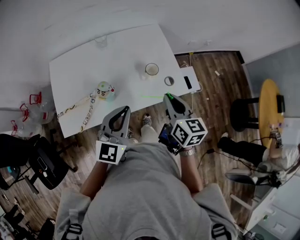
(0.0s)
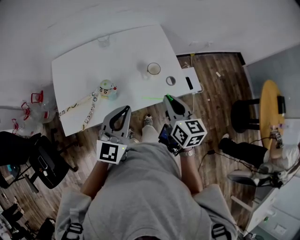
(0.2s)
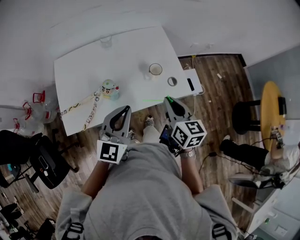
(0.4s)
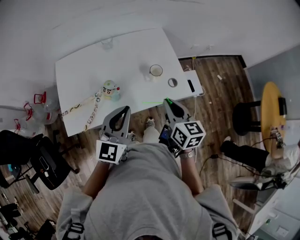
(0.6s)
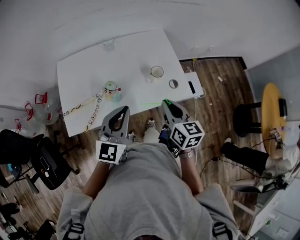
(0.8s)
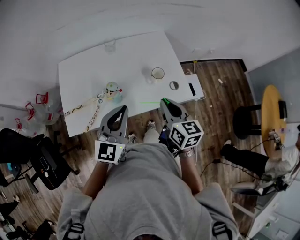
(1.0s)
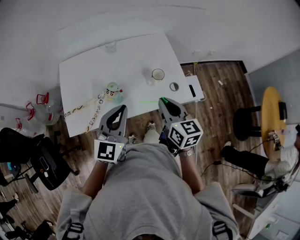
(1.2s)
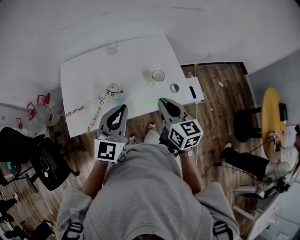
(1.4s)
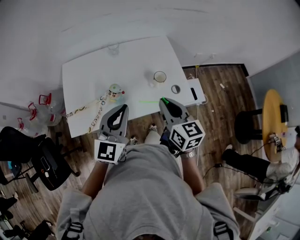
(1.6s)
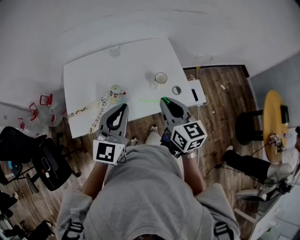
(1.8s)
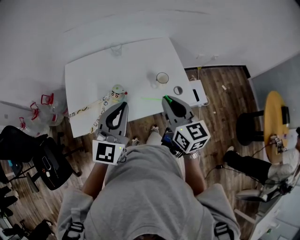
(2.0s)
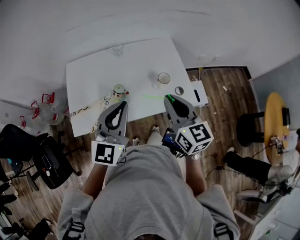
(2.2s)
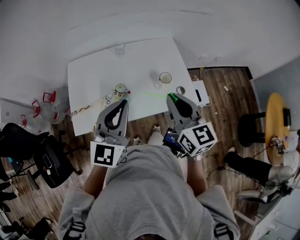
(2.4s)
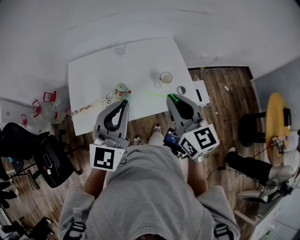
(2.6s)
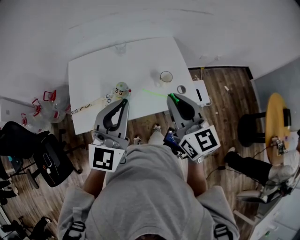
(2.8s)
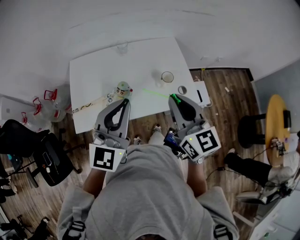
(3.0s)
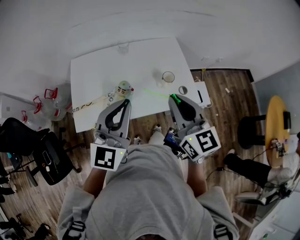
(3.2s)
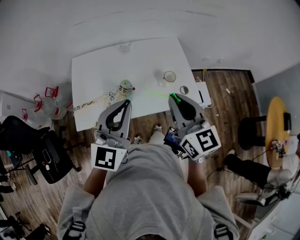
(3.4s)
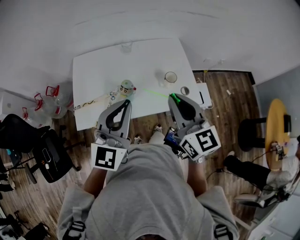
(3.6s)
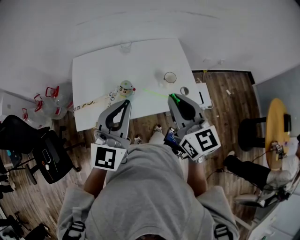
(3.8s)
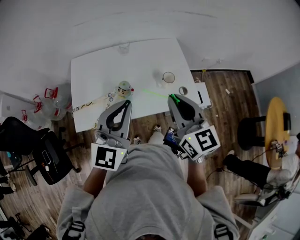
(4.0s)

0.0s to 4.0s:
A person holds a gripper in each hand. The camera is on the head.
0.0s to 1.4s: The right gripper is displaced to the left by about 5 cm.
1.4s to 2.6s: Both grippers move upward, approximately 10 cm.
2.6s to 4.0s: The grippers stay close to where they were, moving slightly.

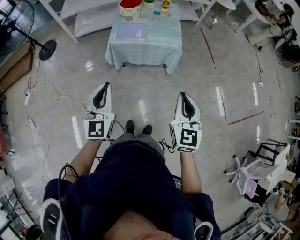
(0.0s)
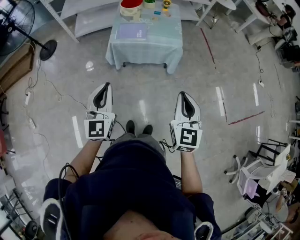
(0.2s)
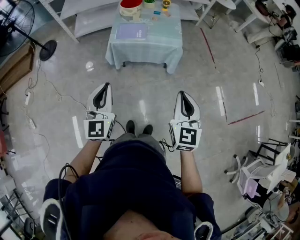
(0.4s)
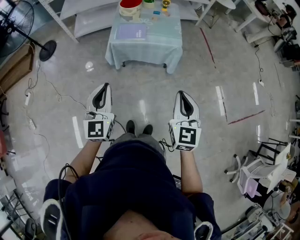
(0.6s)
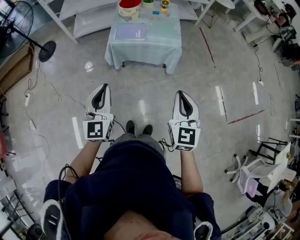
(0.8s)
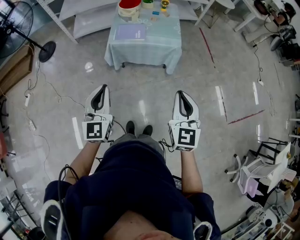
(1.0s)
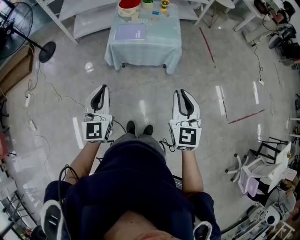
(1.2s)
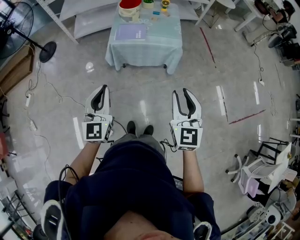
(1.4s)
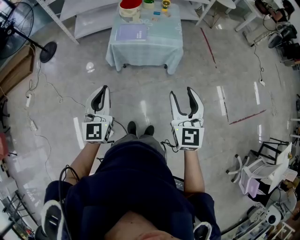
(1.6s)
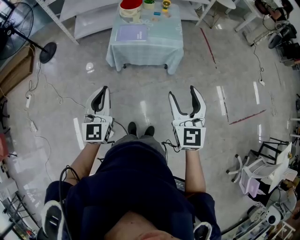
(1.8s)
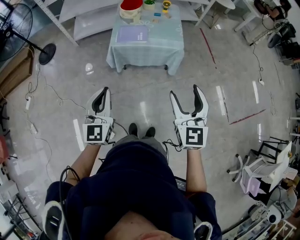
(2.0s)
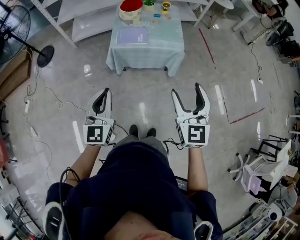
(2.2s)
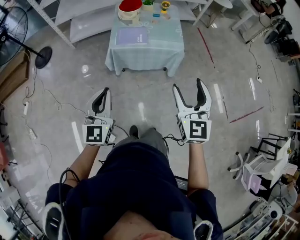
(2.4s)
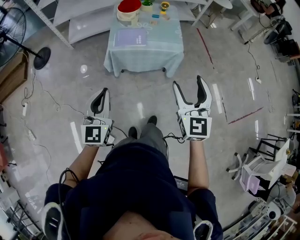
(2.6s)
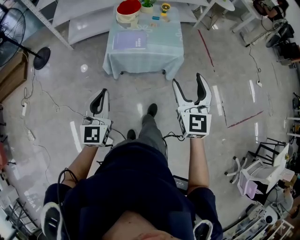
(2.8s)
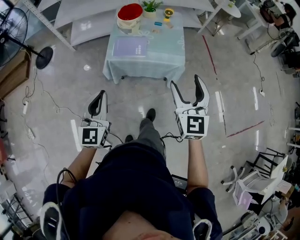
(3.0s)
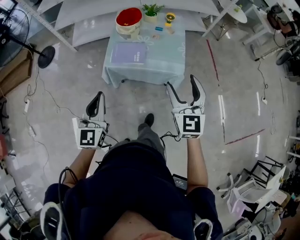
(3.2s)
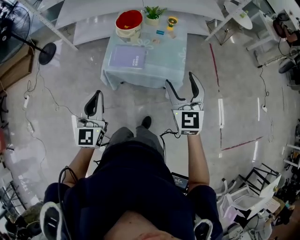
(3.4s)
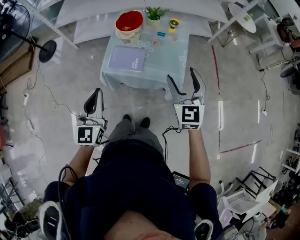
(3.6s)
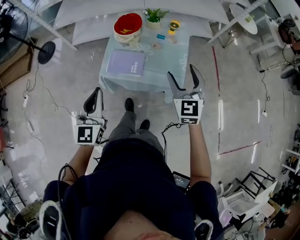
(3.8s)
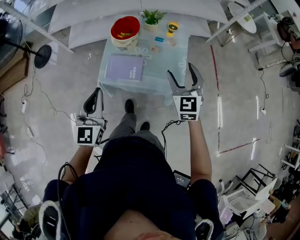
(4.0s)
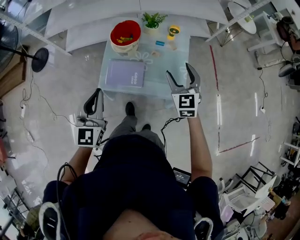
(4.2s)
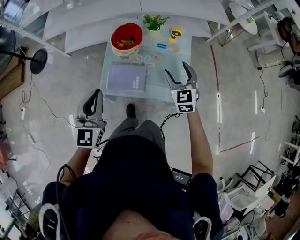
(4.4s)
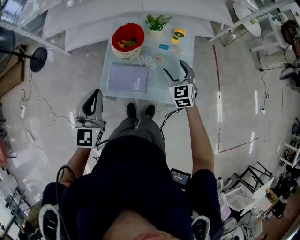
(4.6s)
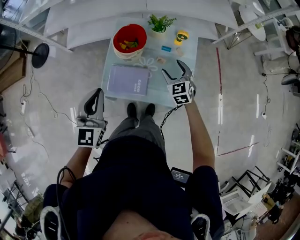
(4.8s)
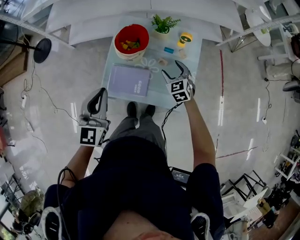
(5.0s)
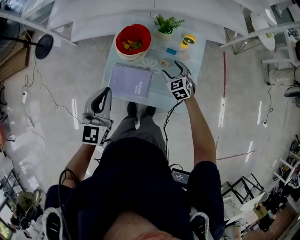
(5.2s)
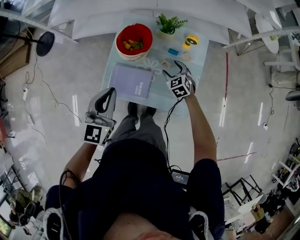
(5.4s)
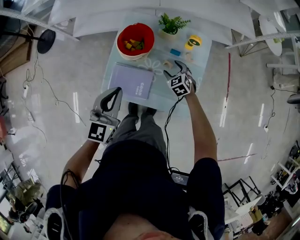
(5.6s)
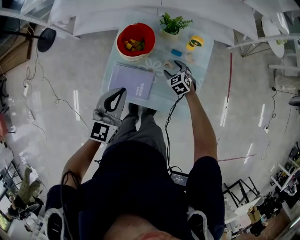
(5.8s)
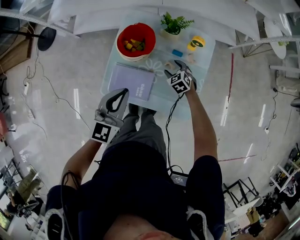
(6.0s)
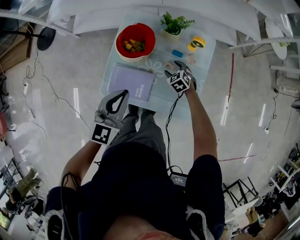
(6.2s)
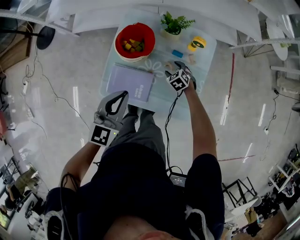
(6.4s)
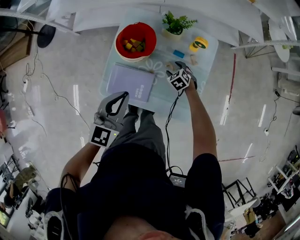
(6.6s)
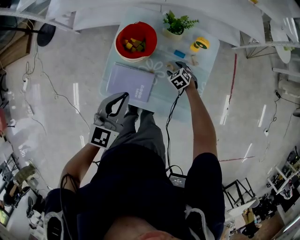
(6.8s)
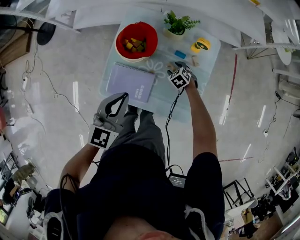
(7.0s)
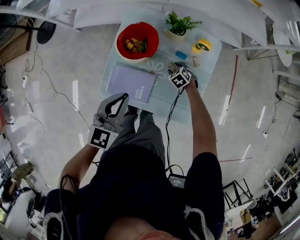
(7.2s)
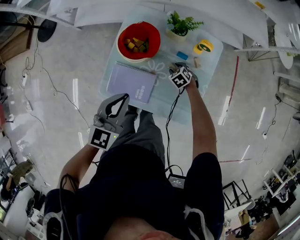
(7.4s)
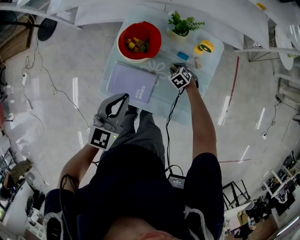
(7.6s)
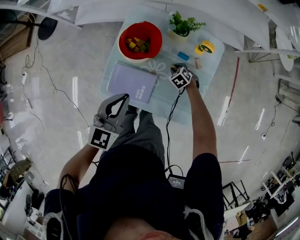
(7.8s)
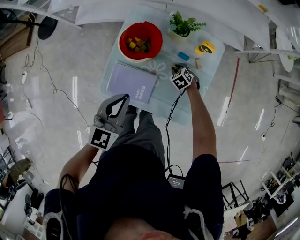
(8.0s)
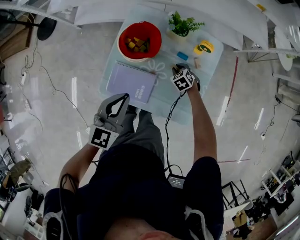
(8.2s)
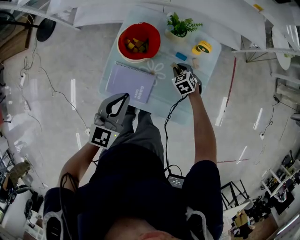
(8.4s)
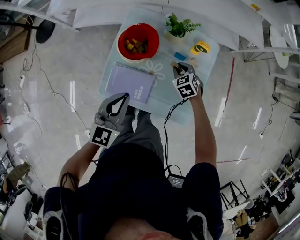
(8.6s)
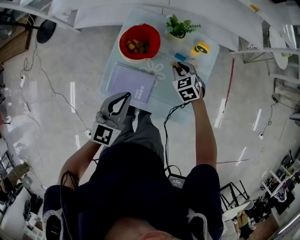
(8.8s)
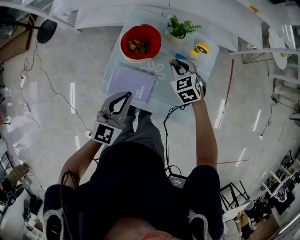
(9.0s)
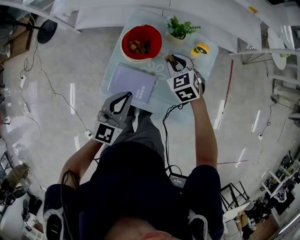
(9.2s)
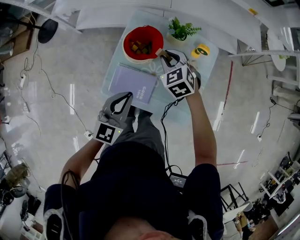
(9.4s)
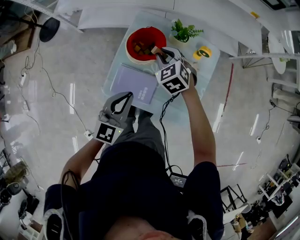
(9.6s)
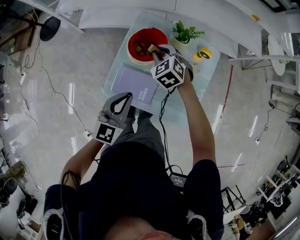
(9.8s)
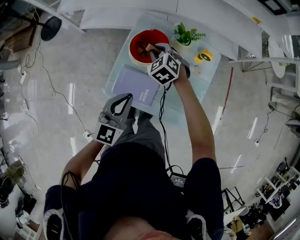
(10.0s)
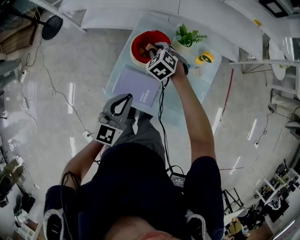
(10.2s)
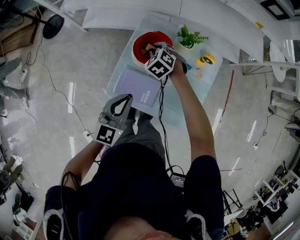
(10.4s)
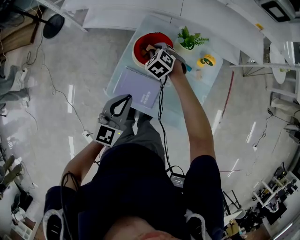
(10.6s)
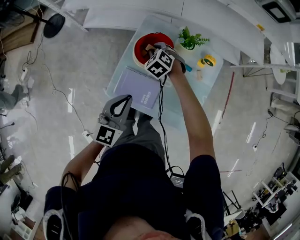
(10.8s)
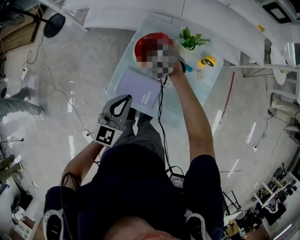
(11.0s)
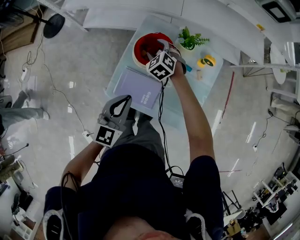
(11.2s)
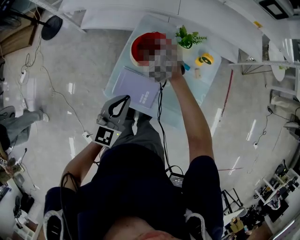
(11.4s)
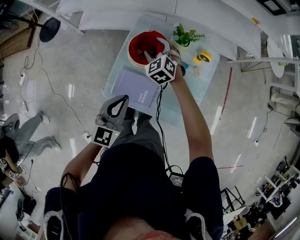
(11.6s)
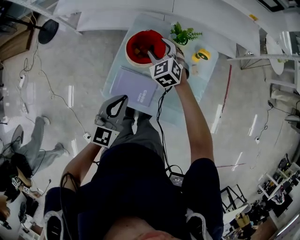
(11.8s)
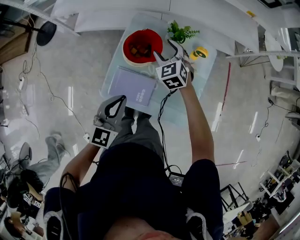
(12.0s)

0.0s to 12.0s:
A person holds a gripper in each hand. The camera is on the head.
0.0s to 1.6s: The right gripper opens up.
1.6s to 3.0s: The grippers both shift forward by approximately 20 cm.
3.0s to 4.4s: Both grippers move forward, roughly 40 cm. The right gripper swivels some 20 degrees.
4.4s to 6.0s: The left gripper is displaced forward, to the right and downward by roughly 15 cm. Meanwhile the right gripper heads downward and forward, covering roughly 30 cm, and tips its fingers downward by approximately 30 degrees.
6.0s to 7.6s: The right gripper heads downward, covering some 10 cm, and closes.
7.6s to 9.0s: The right gripper is displaced upward by approximately 25 cm, and swivels approximately 20 degrees.
9.0s to 10.4s: The right gripper travels to the left and forward by roughly 15 cm.
10.4s to 12.0s: The right gripper shifts some 10 cm to the right and upward, rotates about 20 degrees, and opens.

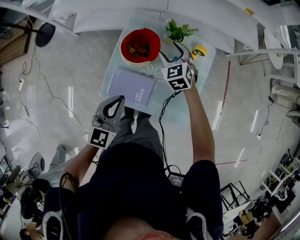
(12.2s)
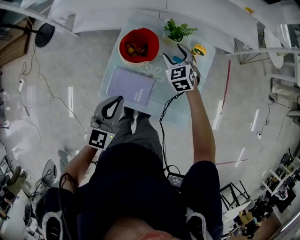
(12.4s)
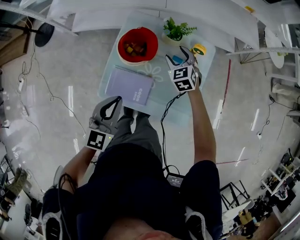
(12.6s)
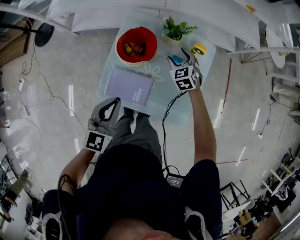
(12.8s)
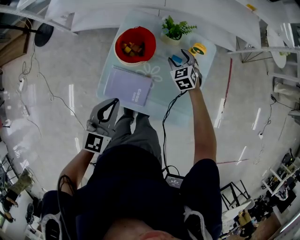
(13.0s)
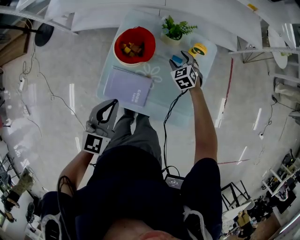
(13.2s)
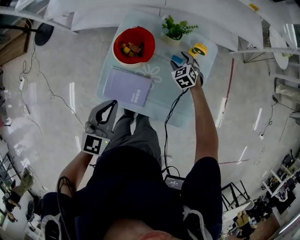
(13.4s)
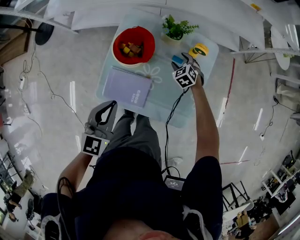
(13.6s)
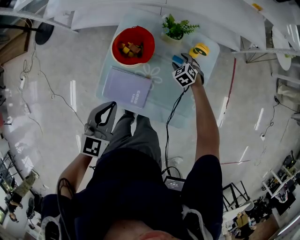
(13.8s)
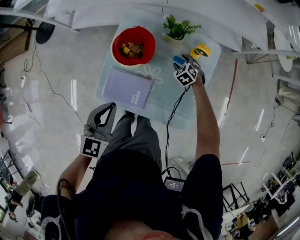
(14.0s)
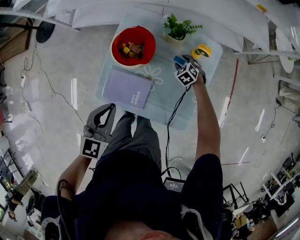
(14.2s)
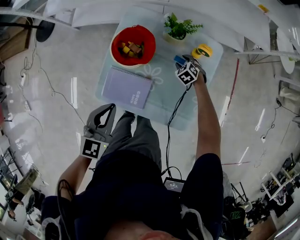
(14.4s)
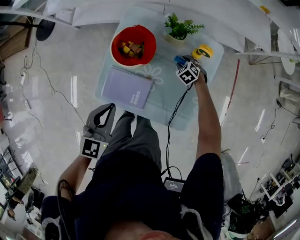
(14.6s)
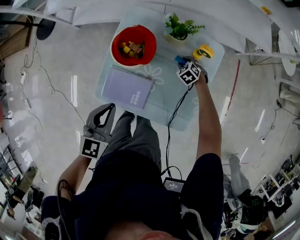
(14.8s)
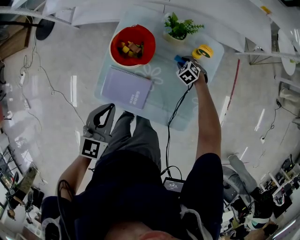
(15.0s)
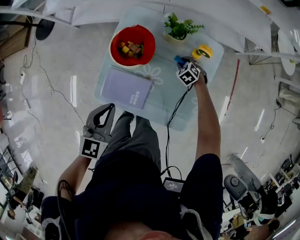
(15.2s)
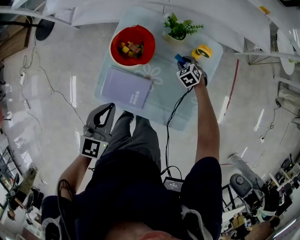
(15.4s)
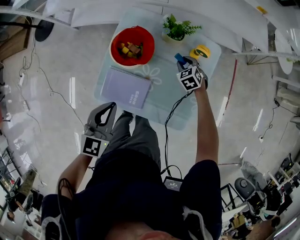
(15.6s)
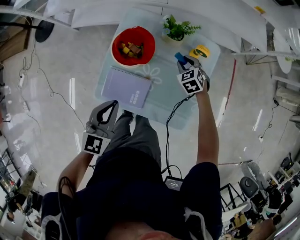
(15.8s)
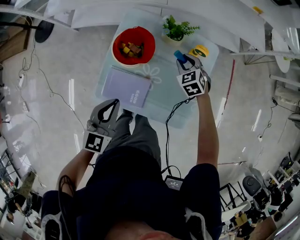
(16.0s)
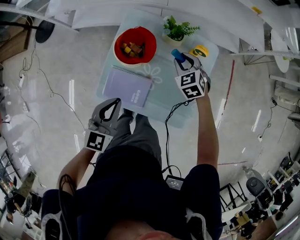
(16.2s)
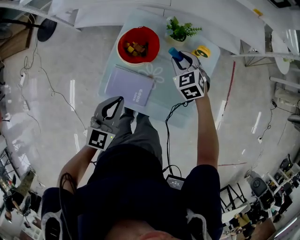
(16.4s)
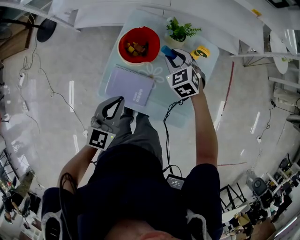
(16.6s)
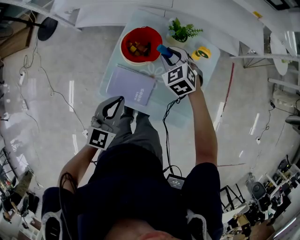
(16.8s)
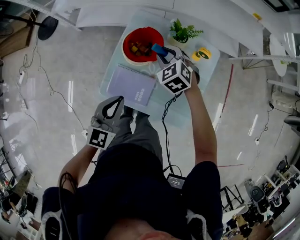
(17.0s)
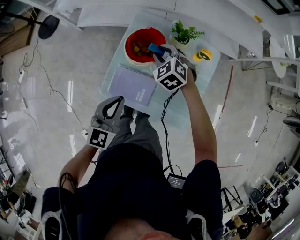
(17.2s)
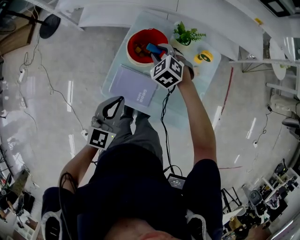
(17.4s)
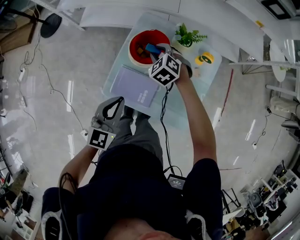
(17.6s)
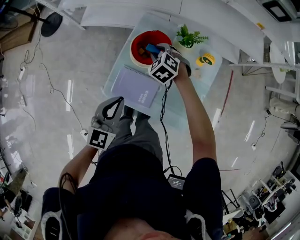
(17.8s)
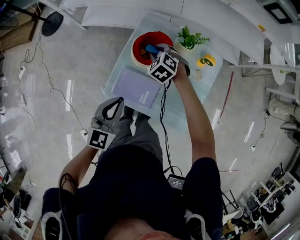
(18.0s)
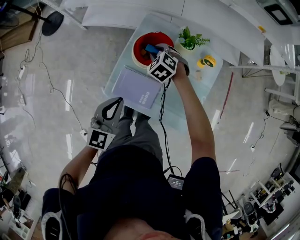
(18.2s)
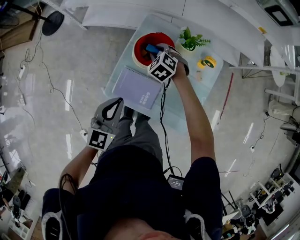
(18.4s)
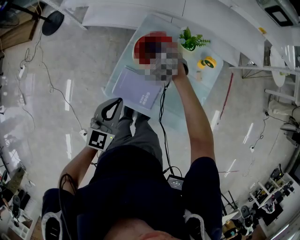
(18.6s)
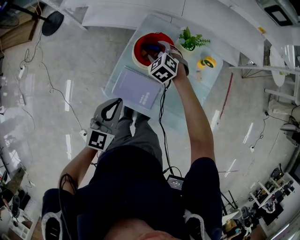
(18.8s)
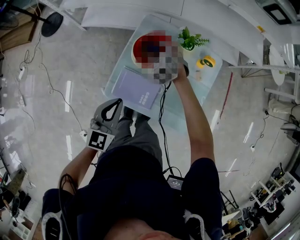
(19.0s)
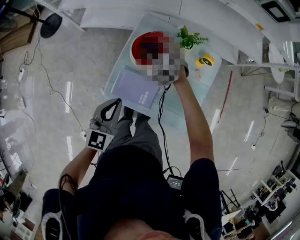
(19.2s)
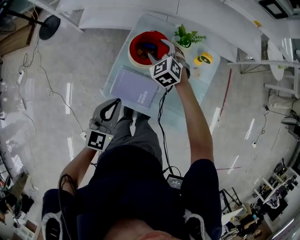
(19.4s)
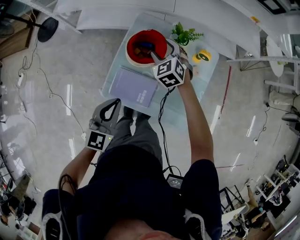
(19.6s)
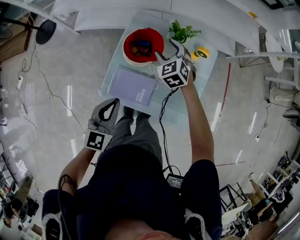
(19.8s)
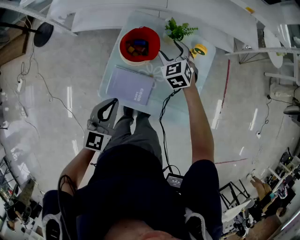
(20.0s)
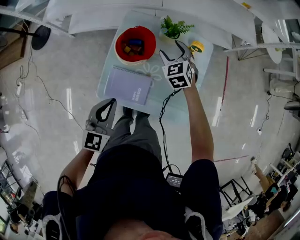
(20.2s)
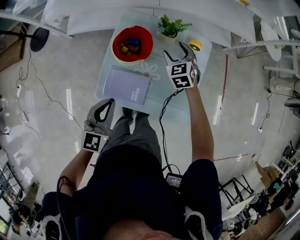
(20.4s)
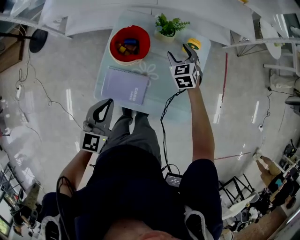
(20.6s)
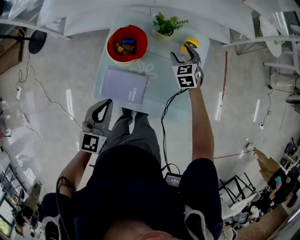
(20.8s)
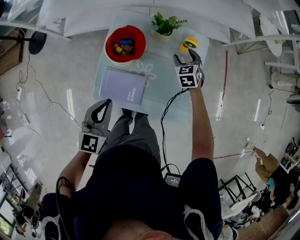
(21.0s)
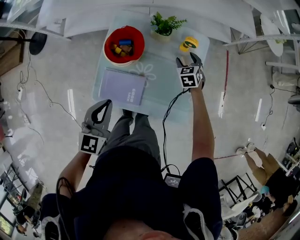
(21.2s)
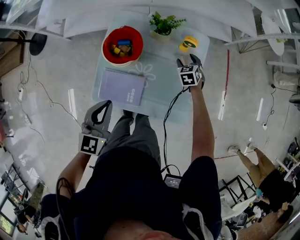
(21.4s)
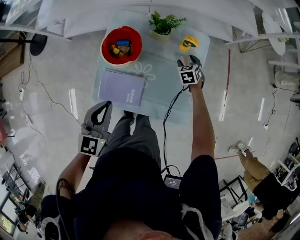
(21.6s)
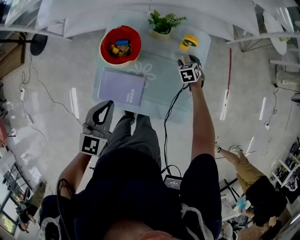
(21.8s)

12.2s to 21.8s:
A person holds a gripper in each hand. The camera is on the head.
12.2s to 13.8s: The right gripper travels downward and to the right by about 25 cm, and turns by roughly 20 degrees.
13.8s to 15.4s: The right gripper closes.
15.4s to 17.0s: The right gripper heads upward and to the left, covering about 30 cm.
17.0s to 18.6s: The right gripper goes approximately 10 cm to the left and downward, and opens.
18.6s to 20.2s: The right gripper heads to the right, covering some 15 cm, and turns by about 30 degrees.
20.2s to 21.8s: The left gripper ends up some 5 cm from where it was; the right gripper is displaced downward and to the right by about 25 cm, and swivels about 30 degrees.
